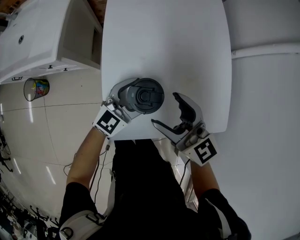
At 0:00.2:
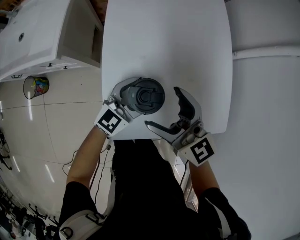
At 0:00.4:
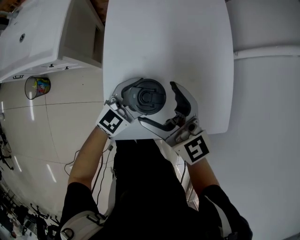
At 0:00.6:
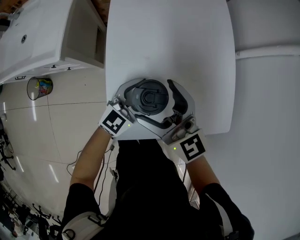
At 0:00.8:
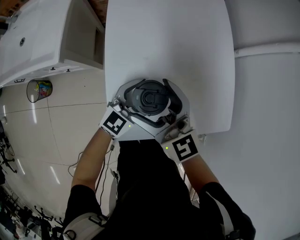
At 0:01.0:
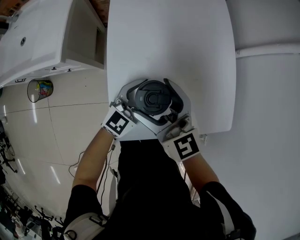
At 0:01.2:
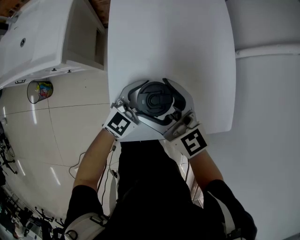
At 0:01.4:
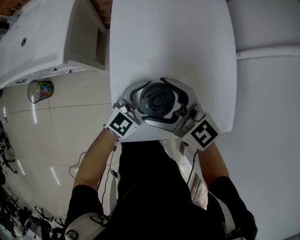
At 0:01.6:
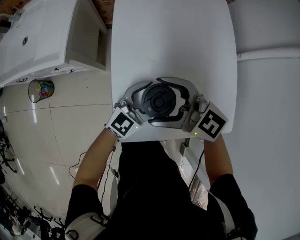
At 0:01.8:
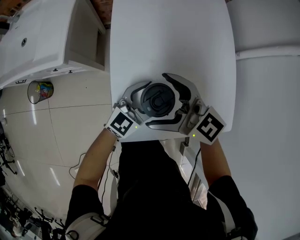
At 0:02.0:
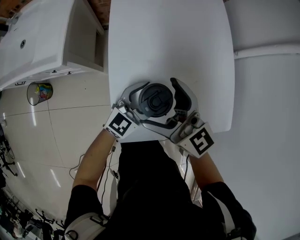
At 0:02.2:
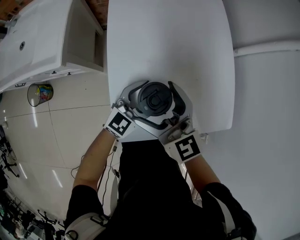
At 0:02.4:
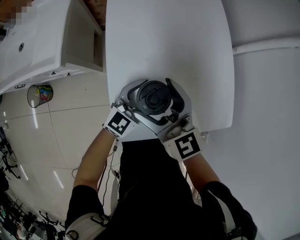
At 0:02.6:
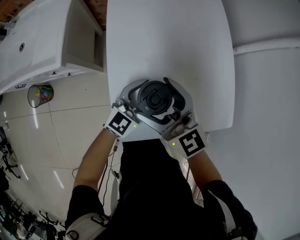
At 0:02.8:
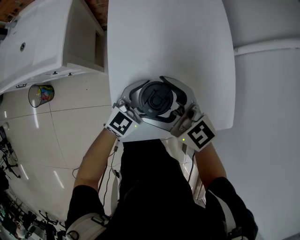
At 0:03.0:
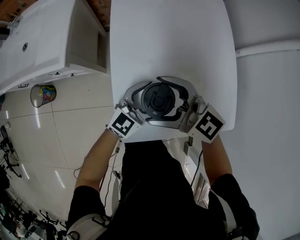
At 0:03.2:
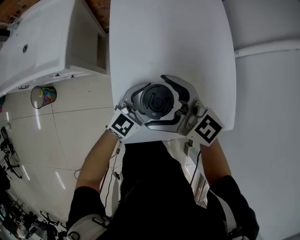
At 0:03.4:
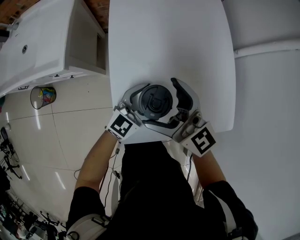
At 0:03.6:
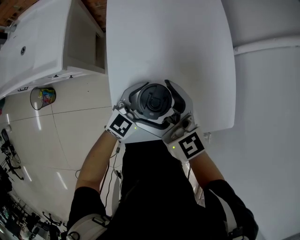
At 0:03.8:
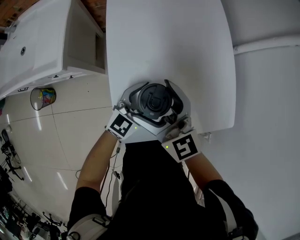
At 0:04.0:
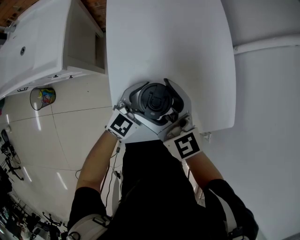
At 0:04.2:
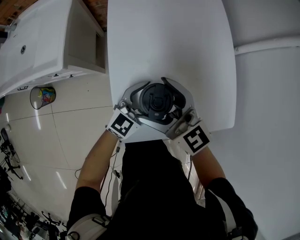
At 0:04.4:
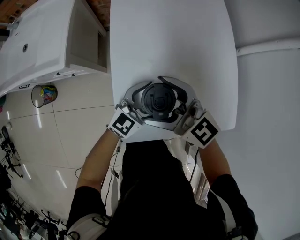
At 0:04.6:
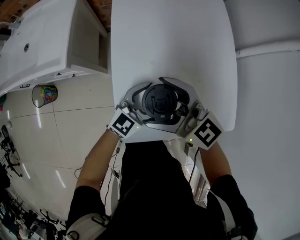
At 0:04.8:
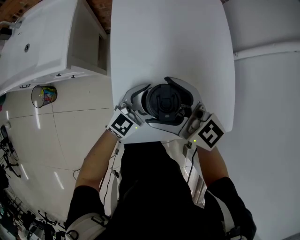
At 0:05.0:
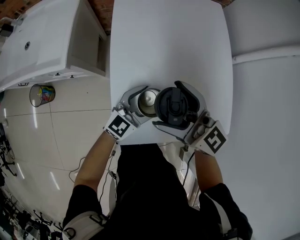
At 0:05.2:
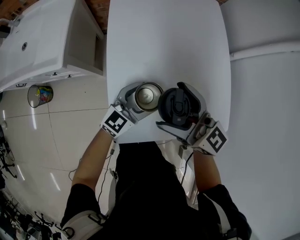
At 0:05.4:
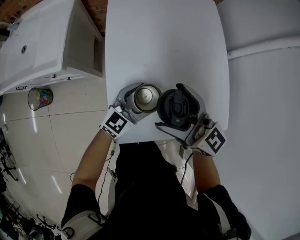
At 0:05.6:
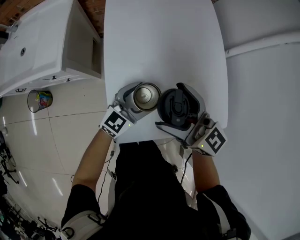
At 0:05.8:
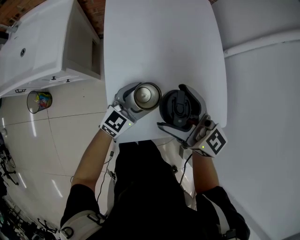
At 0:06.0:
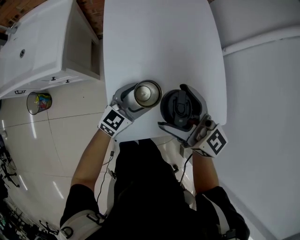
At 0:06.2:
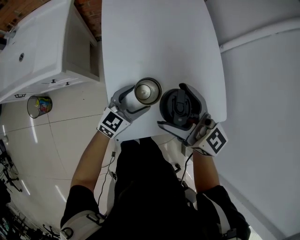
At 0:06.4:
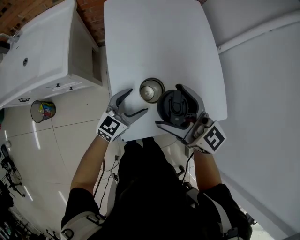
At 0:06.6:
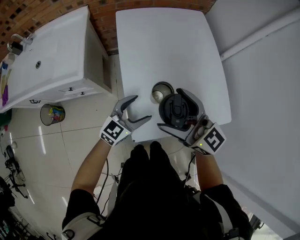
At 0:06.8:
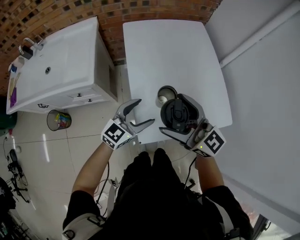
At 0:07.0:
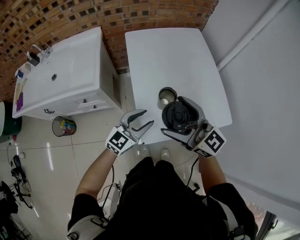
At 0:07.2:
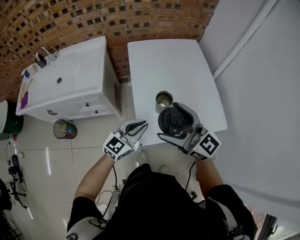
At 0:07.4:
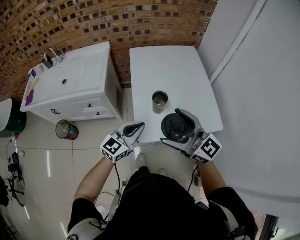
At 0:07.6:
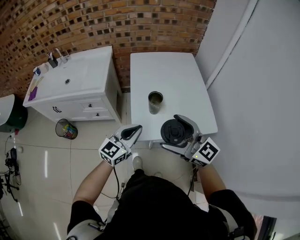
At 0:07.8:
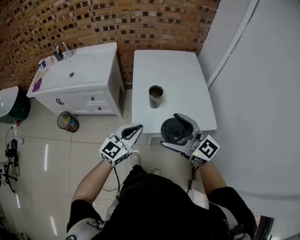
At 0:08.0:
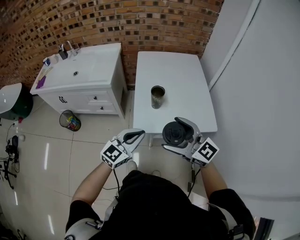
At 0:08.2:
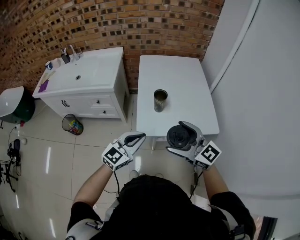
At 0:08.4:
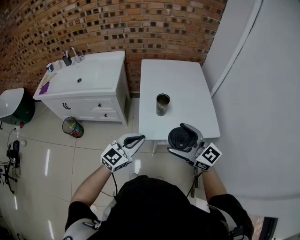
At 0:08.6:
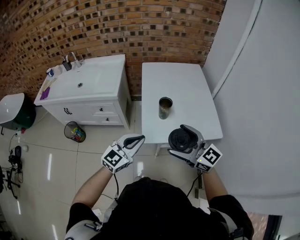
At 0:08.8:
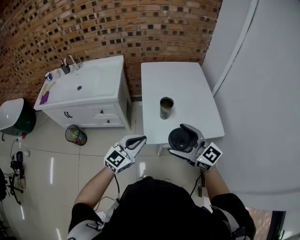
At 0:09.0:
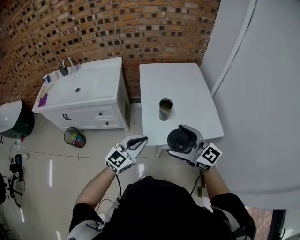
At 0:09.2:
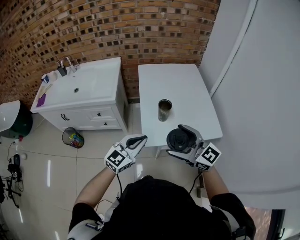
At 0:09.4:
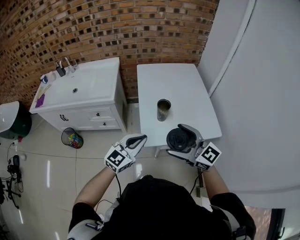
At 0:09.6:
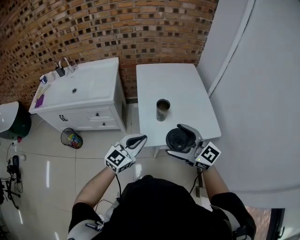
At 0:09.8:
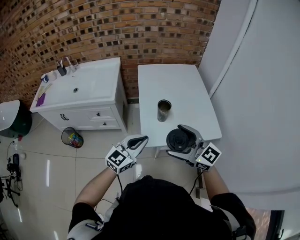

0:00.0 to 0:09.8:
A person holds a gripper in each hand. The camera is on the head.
0:00.0 to 0:01.4: The right gripper moves to the left, approximately 5 cm.
0:02.8 to 0:04.2: The grippers stay close to where they were, moving slightly.
0:04.2 to 0:05.6: The right gripper moves to the right, approximately 5 cm.
0:05.6 to 0:07.0: The grippers both shift upward, backward and to the left by approximately 15 cm. The left gripper closes.
0:07.0 to 0:08.4: The left gripper is displaced backward and upward by approximately 20 cm, and closes up, while the right gripper heads backward, covering roughly 20 cm.
0:08.4 to 0:09.8: The grippers stay close to where they were, moving slightly.

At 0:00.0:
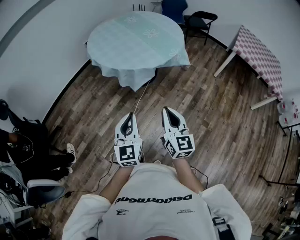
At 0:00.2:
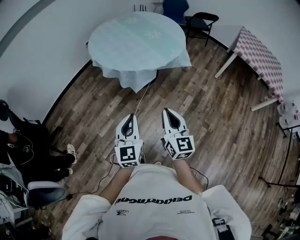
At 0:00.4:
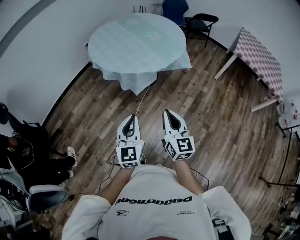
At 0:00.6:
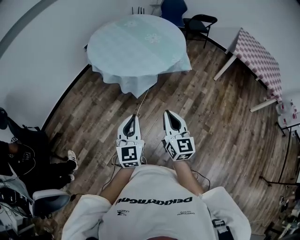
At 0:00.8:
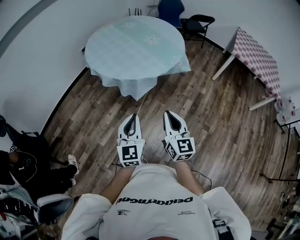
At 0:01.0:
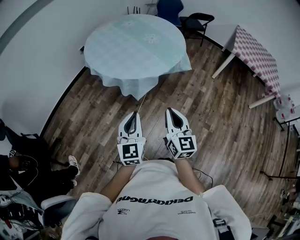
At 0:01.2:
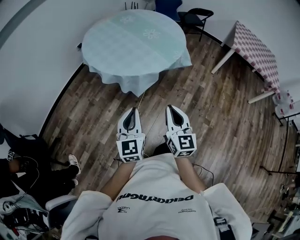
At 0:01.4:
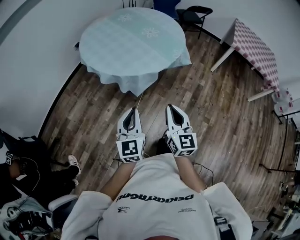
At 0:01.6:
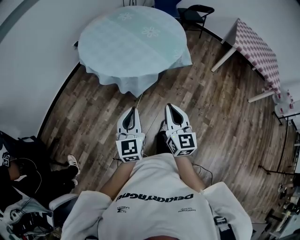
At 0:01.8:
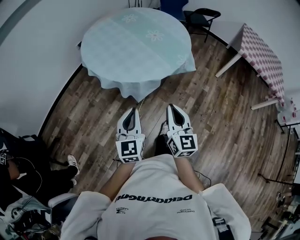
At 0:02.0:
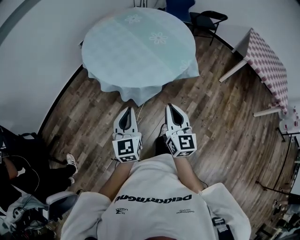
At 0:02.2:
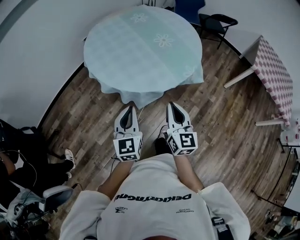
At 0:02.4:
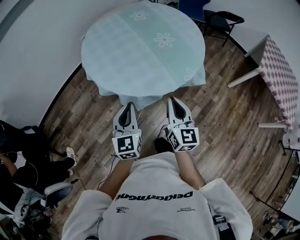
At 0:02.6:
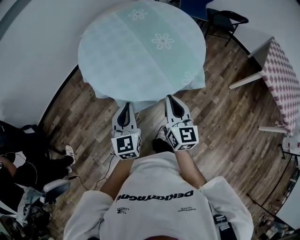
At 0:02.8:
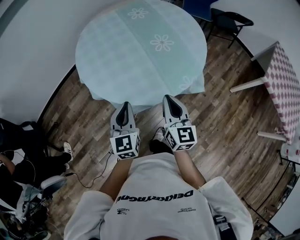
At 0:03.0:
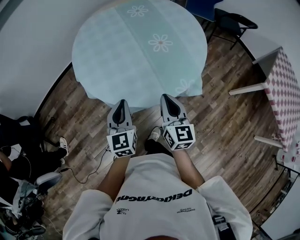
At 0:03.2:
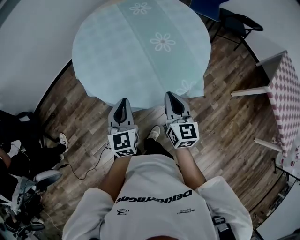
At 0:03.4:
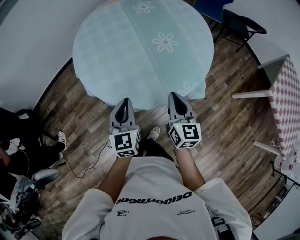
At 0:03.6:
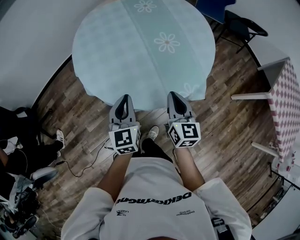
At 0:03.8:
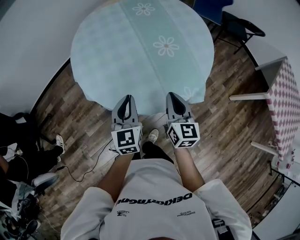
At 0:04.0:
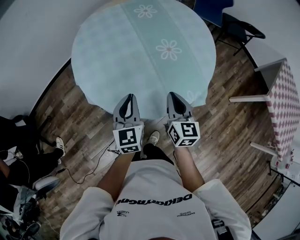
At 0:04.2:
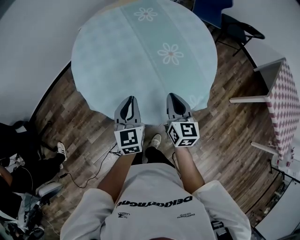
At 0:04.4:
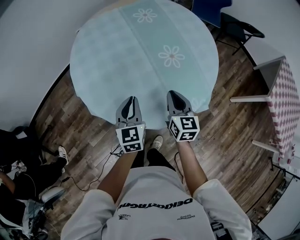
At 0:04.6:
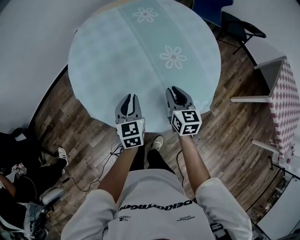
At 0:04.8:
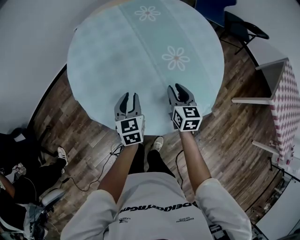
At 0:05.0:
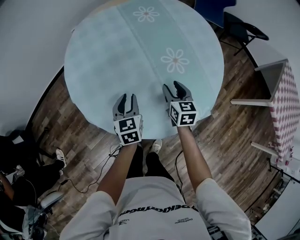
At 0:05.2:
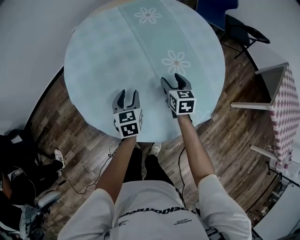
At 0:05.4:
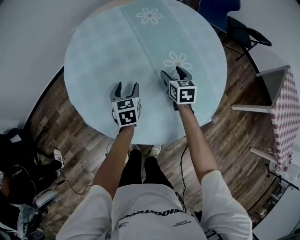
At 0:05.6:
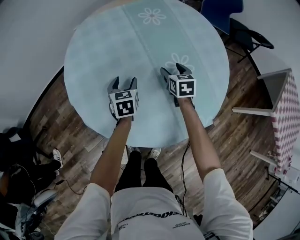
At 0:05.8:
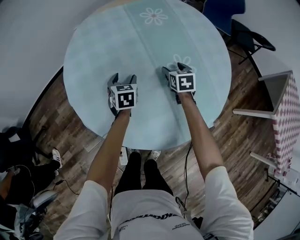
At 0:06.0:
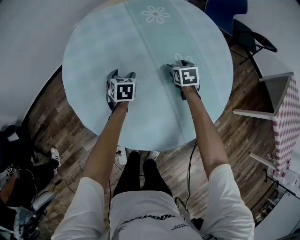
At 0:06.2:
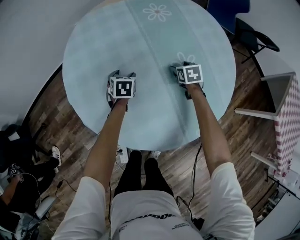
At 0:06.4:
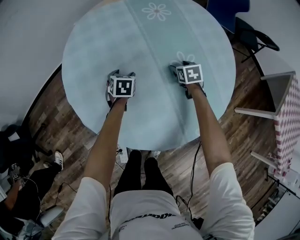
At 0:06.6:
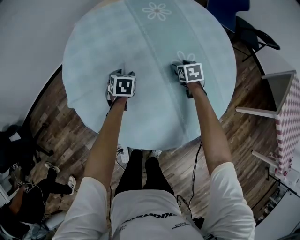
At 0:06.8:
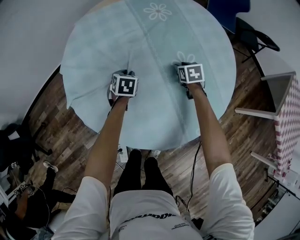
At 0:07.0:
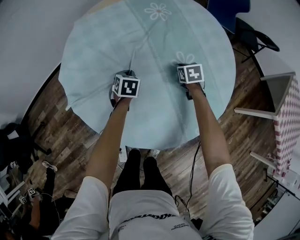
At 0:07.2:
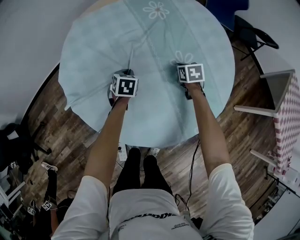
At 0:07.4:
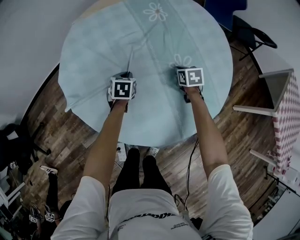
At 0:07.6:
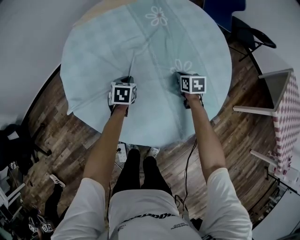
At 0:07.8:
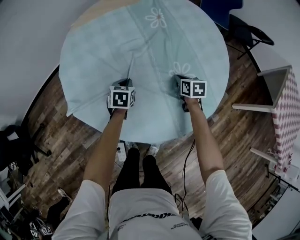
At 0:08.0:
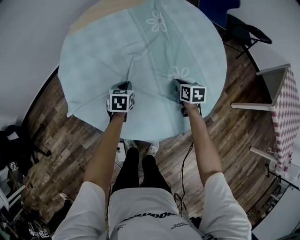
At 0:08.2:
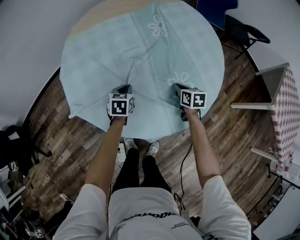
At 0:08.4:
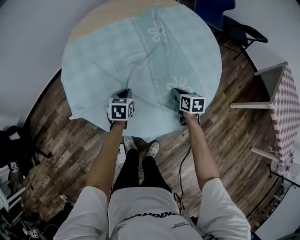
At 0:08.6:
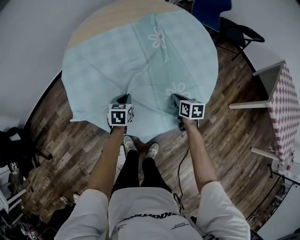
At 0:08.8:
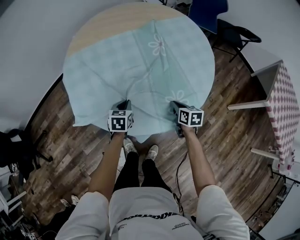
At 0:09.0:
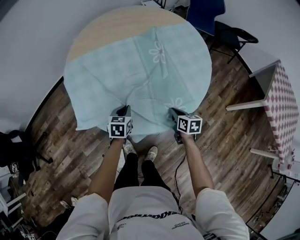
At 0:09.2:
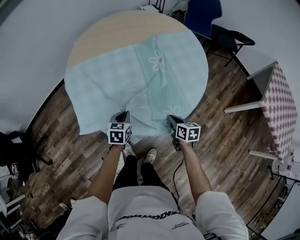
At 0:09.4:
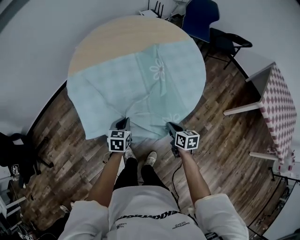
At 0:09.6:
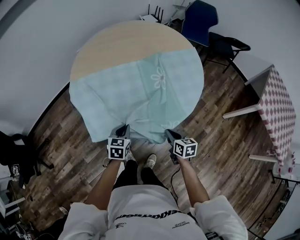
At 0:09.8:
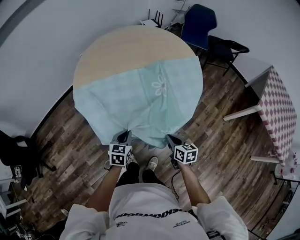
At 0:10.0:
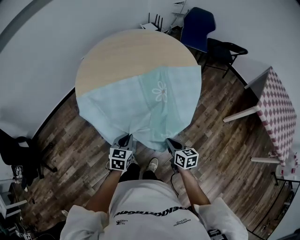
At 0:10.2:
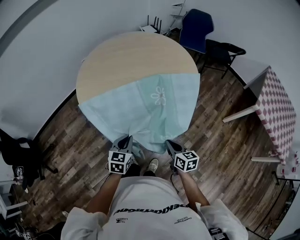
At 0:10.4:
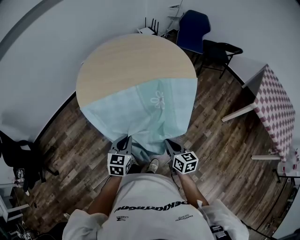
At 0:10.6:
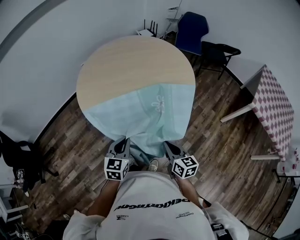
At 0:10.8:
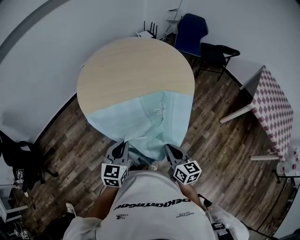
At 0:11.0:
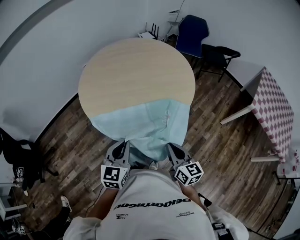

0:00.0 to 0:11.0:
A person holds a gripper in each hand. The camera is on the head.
0:00.0 to 0:01.6: The two grippers go approximately 15 cm forward and to the left.
0:01.6 to 0:03.2: The two grippers go roughly 40 cm forward and to the right. The left gripper turns by approximately 30 degrees. The right gripper swivels about 20 degrees.
0:03.2 to 0:04.8: Both grippers move forward and downward, roughly 25 cm.
0:04.8 to 0:06.2: Both grippers move forward and downward, approximately 25 cm. The left gripper turns by about 20 degrees, and opens its fingers. Meanwhile the right gripper rotates about 30 degrees, and opens up.
0:06.2 to 0:07.8: The two grippers go about 10 cm backward. The left gripper closes, while the right gripper closes its fingers.
0:07.8 to 0:09.4: The left gripper is displaced backward and upward by roughly 25 cm; the right gripper is displaced backward by some 25 cm.
0:09.4 to 0:11.0: Both grippers travel together upward and backward, some 30 cm. The left gripper rotates about 30 degrees; the right gripper rotates some 30 degrees.

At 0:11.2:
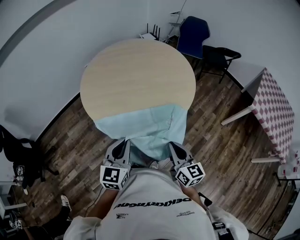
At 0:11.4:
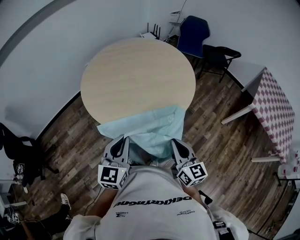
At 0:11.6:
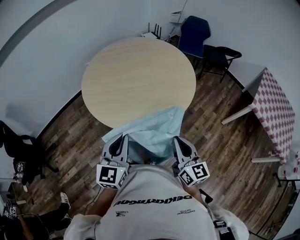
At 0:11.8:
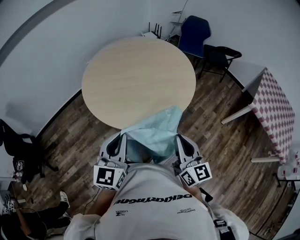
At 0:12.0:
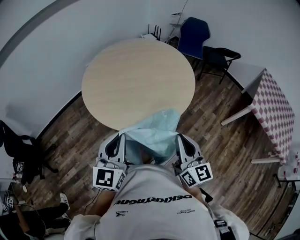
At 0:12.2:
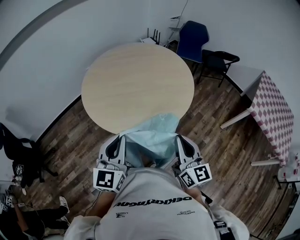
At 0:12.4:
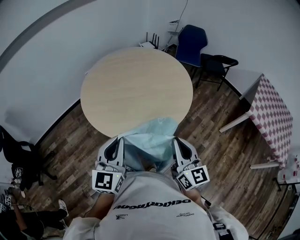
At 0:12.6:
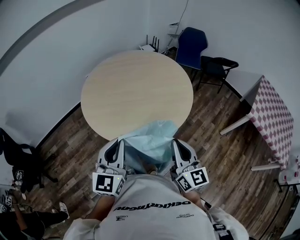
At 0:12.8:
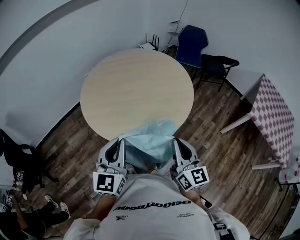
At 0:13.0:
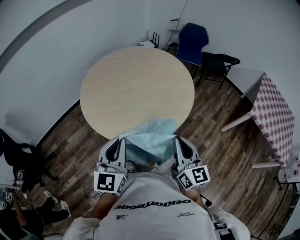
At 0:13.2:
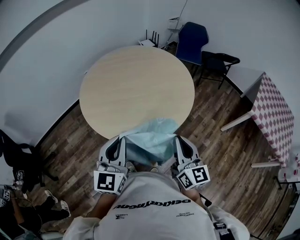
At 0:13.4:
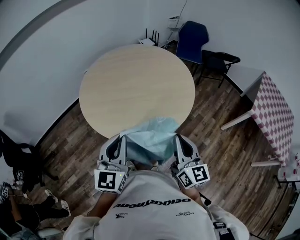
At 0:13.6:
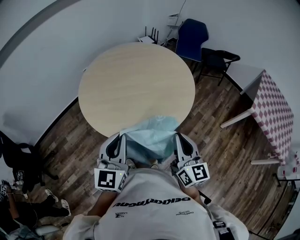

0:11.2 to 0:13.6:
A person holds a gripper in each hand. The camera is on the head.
0:11.2 to 0:12.4: Both grippers travel together upward, some 10 cm.
0:12.4 to 0:13.6: There are only small adjustments of the grippers.
